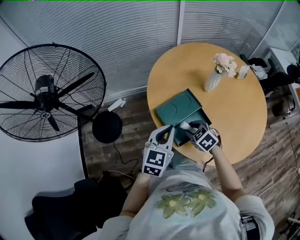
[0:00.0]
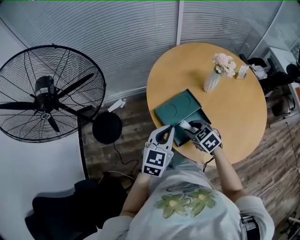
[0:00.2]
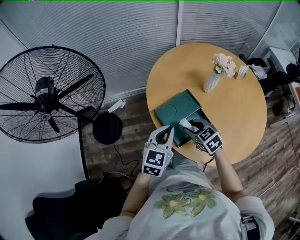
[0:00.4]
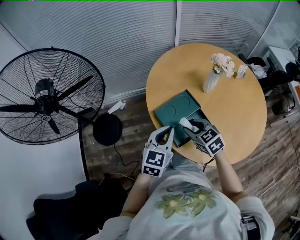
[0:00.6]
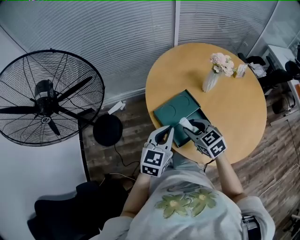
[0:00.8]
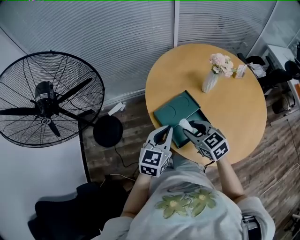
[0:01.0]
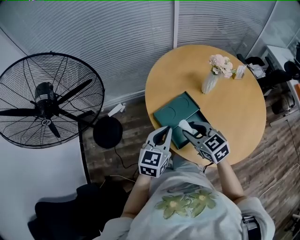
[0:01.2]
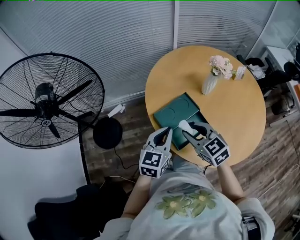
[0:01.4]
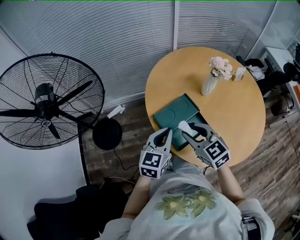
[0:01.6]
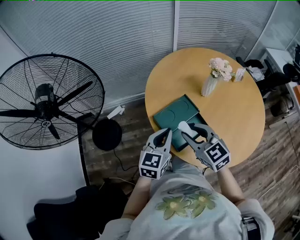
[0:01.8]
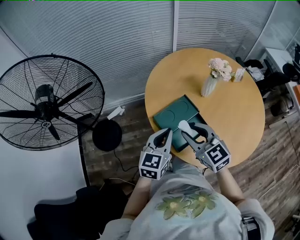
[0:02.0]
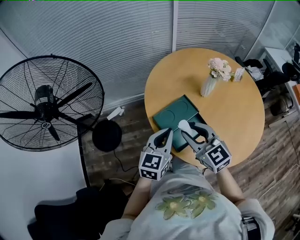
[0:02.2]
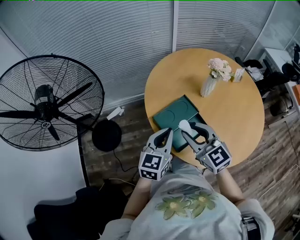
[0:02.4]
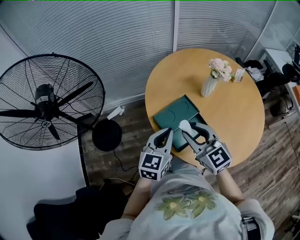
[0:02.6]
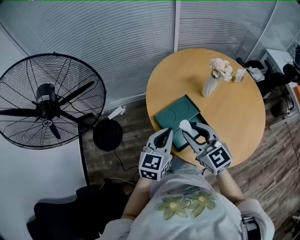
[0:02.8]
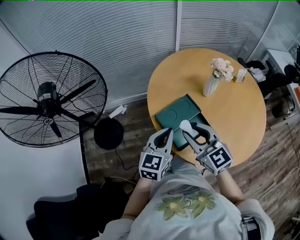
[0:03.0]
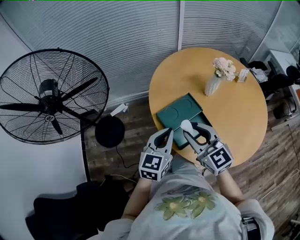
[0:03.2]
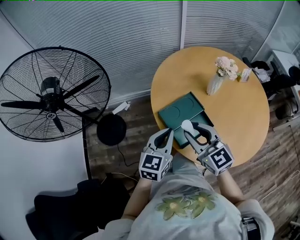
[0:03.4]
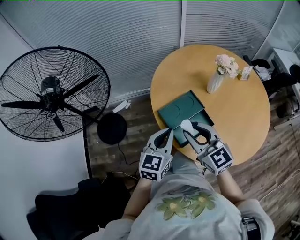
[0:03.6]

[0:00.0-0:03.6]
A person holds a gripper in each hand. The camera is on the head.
0:00.0 to 0:01.8: The right gripper shifts some 15 cm upward, and points its fingers approximately 30 degrees further upward.
0:01.8 to 0:03.6: There are only small adjustments of the grippers.

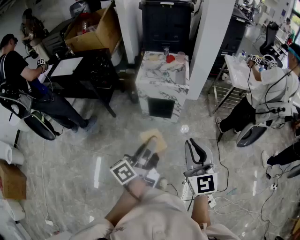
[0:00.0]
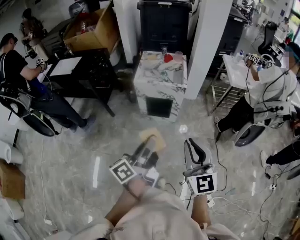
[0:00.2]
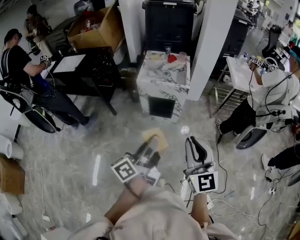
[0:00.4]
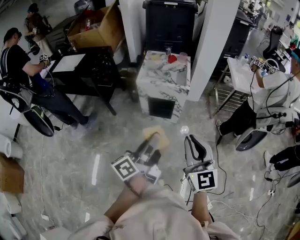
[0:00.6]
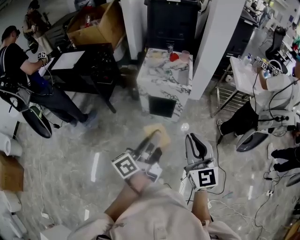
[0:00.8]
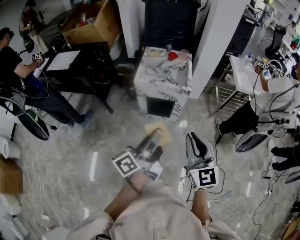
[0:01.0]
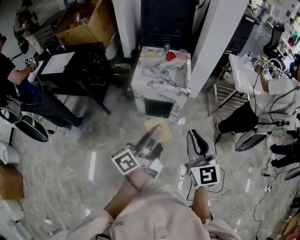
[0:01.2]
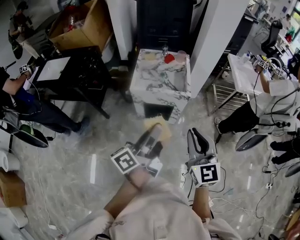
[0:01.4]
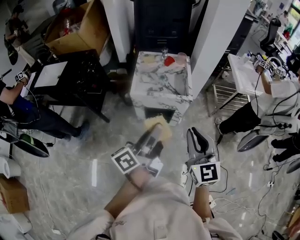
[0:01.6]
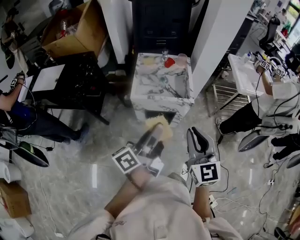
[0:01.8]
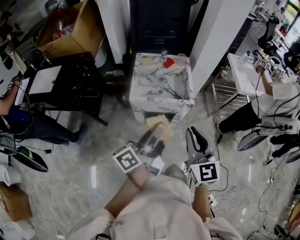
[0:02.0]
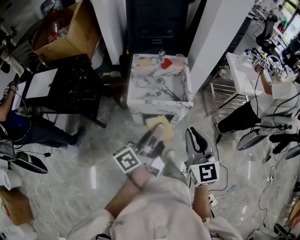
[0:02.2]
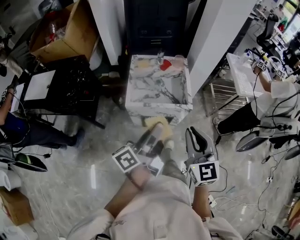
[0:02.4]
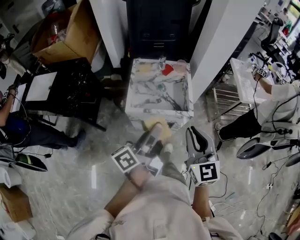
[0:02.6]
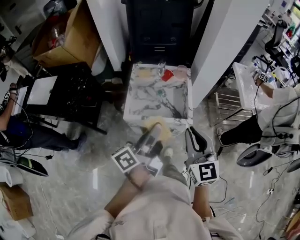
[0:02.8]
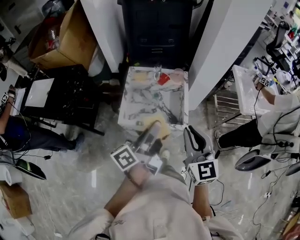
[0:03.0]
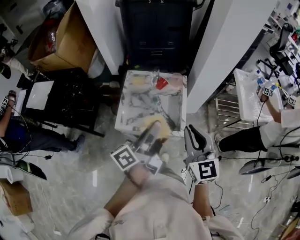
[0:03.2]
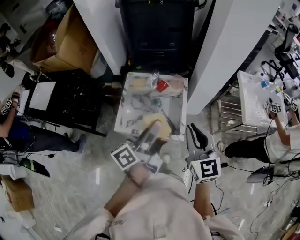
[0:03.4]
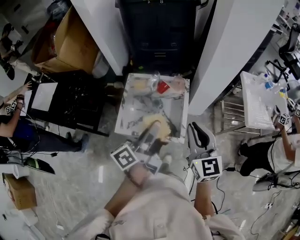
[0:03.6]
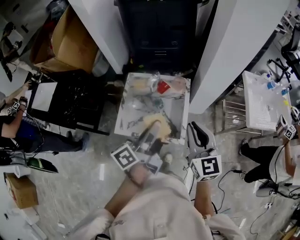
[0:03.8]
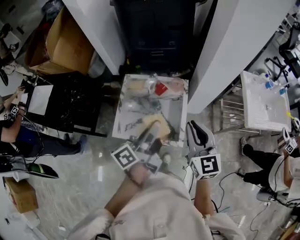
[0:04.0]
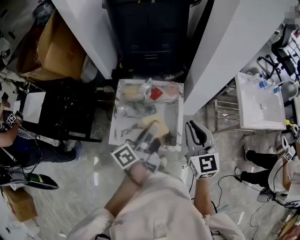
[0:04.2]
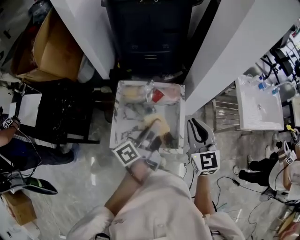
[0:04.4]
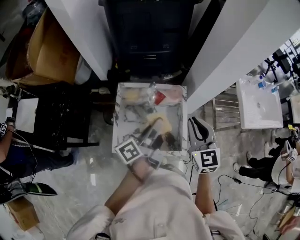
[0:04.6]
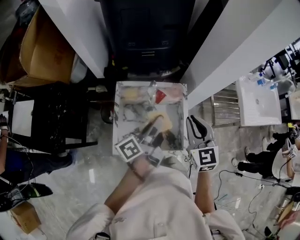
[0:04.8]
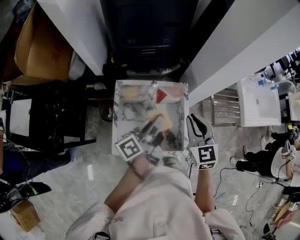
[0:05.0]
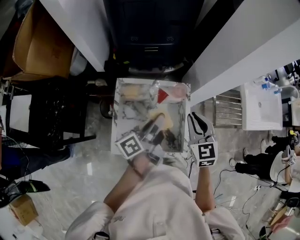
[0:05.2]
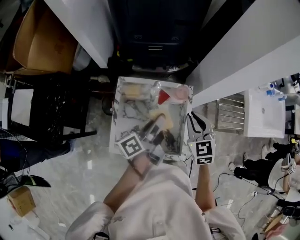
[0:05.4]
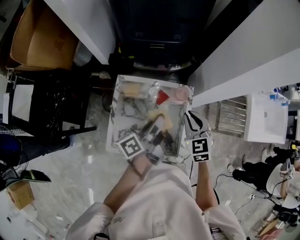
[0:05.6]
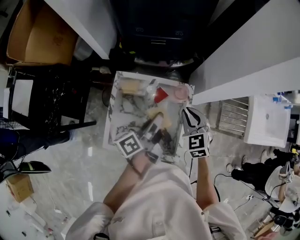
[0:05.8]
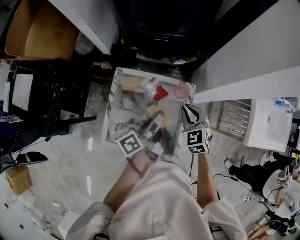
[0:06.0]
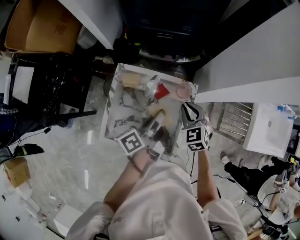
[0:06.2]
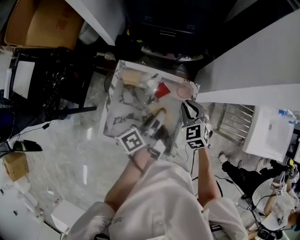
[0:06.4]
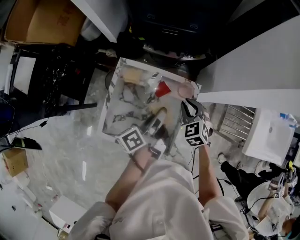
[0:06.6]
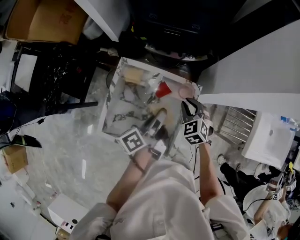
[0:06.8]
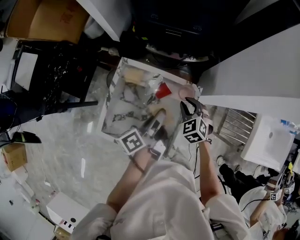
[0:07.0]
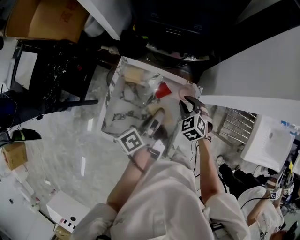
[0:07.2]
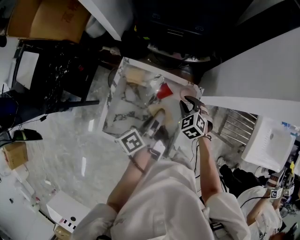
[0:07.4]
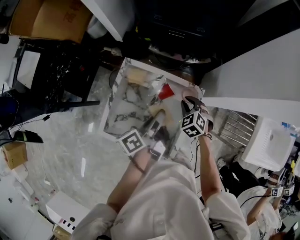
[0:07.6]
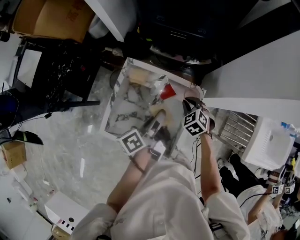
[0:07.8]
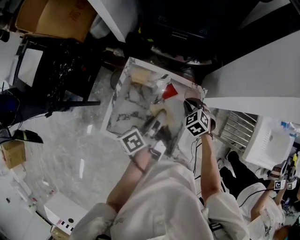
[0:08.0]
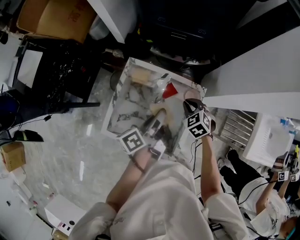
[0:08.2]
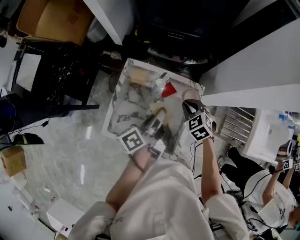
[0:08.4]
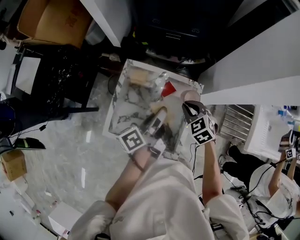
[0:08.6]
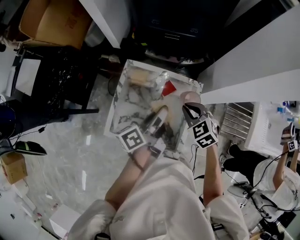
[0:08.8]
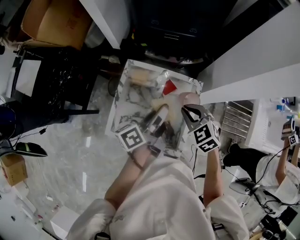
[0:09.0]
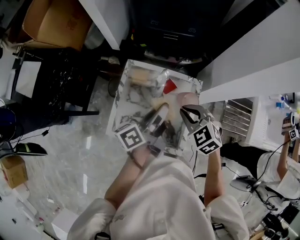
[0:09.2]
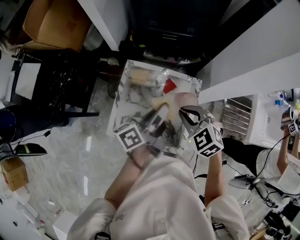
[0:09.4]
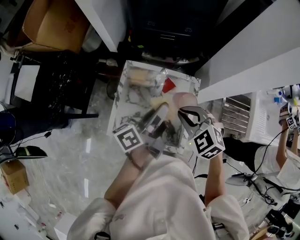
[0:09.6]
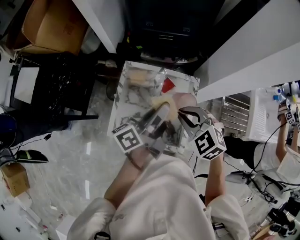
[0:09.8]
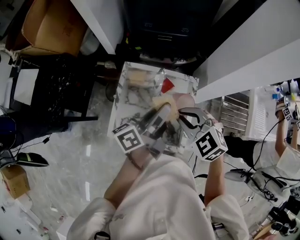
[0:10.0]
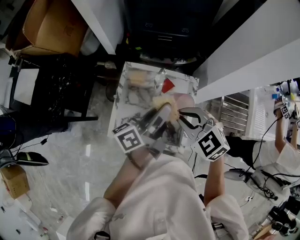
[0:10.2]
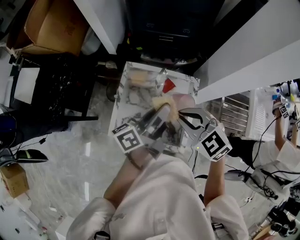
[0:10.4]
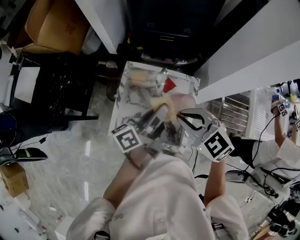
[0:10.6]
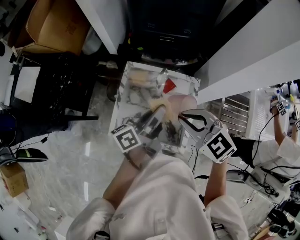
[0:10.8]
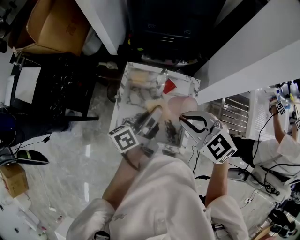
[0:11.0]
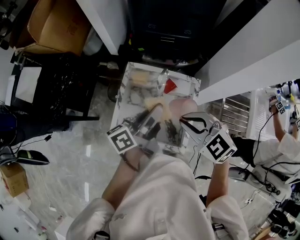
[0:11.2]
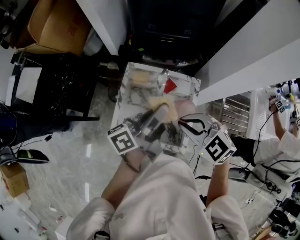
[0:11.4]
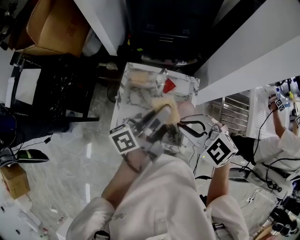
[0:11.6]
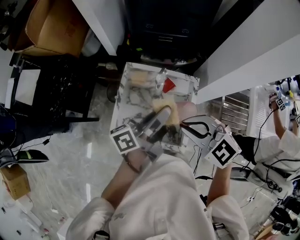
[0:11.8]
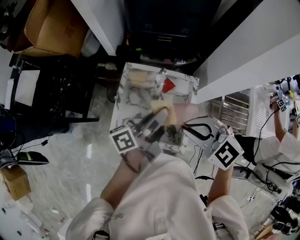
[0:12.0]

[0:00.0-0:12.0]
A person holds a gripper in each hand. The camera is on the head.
0:00.0 to 0:01.6: The two grippers go roughly 25 cm forward.
0:01.6 to 0:03.0: Both grippers travel together forward, roughly 25 cm.
0:03.0 to 0:04.4: The two grippers go about 20 cm forward.
0:04.4 to 0:06.0: The right gripper goes about 25 cm downward and forward, and rotates some 30 degrees. The left gripper is displaced forward and downward by approximately 20 cm.
0:06.0 to 0:07.6: The right gripper heads downward, covering some 10 cm, and turns by some 20 degrees.
0:07.6 to 0:09.0: The left gripper is displaced upward by some 10 cm; the right gripper heads upward and backward, covering some 15 cm.
0:09.0 to 0:10.4: The right gripper travels upward, to the left and backward by about 15 cm. Meanwhile the left gripper travels upward by about 5 cm.
0:10.4 to 0:12.0: The right gripper heads backward, covering about 5 cm.

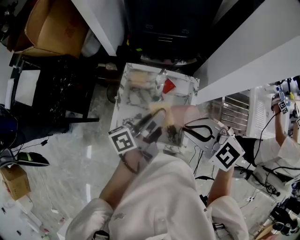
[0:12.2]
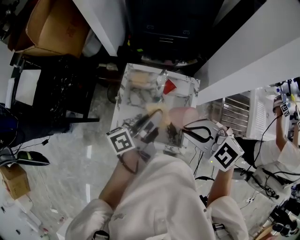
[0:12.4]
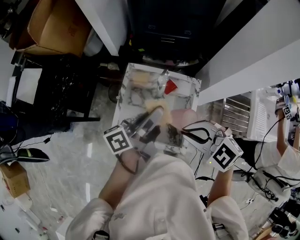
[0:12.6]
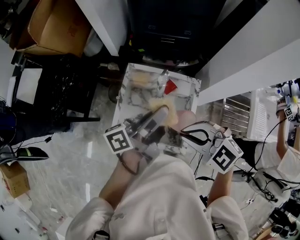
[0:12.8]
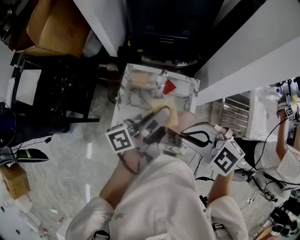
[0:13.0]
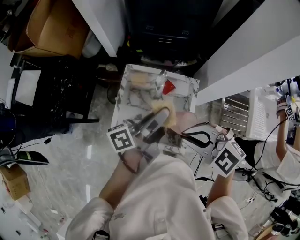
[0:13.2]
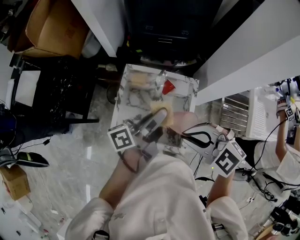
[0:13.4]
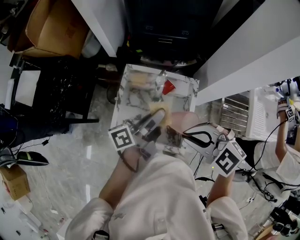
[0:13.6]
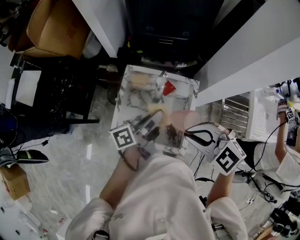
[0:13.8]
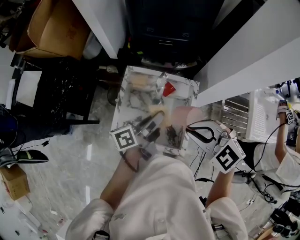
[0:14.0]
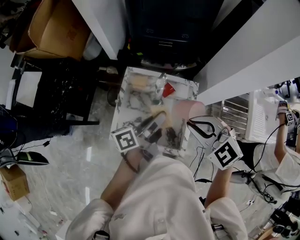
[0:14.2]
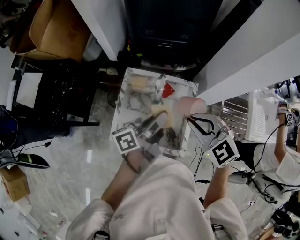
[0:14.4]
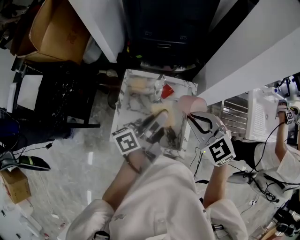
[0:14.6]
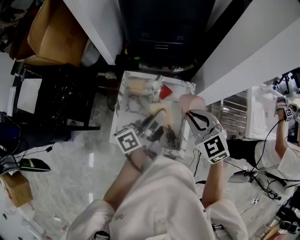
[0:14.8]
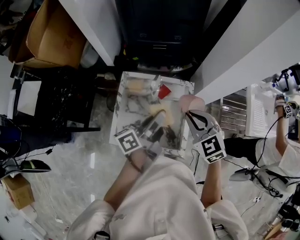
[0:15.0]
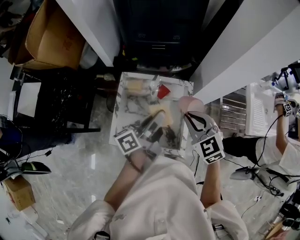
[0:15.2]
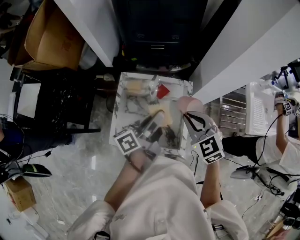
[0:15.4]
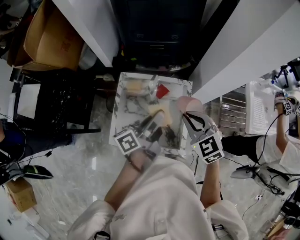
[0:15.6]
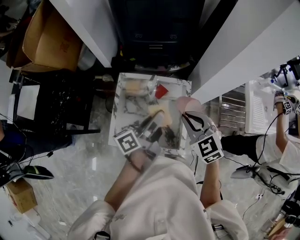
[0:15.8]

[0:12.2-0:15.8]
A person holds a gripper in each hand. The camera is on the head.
0:12.2 to 0:14.0: The grippers make only small movements.
0:14.0 to 0:15.8: The right gripper changes place by about 10 cm, and changes its angle by some 30 degrees.

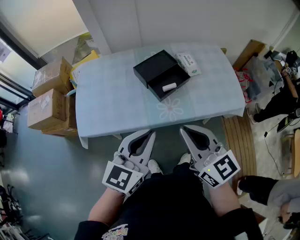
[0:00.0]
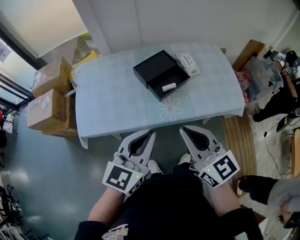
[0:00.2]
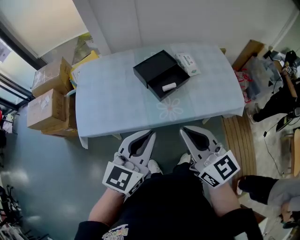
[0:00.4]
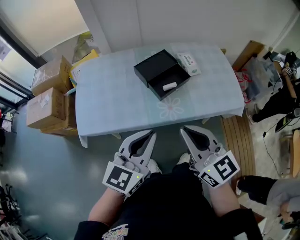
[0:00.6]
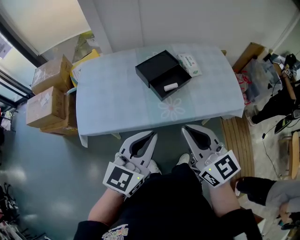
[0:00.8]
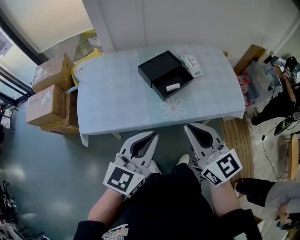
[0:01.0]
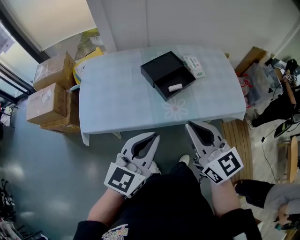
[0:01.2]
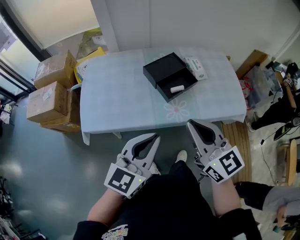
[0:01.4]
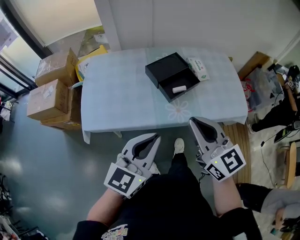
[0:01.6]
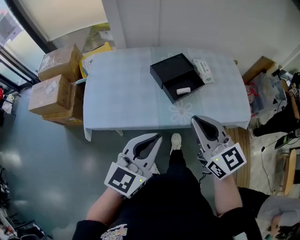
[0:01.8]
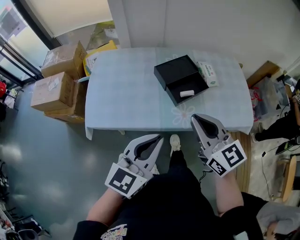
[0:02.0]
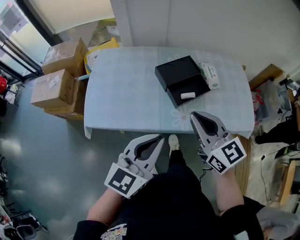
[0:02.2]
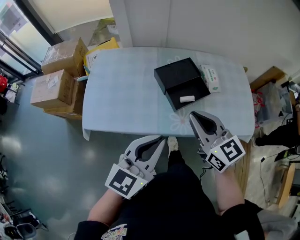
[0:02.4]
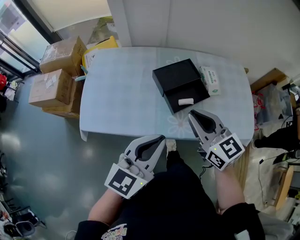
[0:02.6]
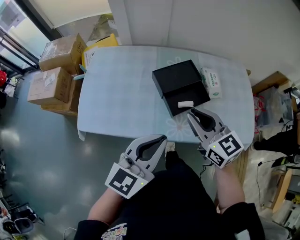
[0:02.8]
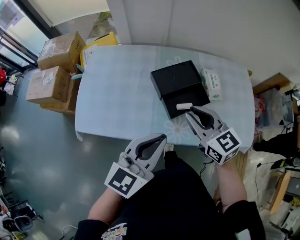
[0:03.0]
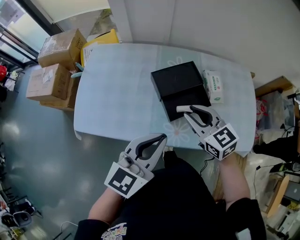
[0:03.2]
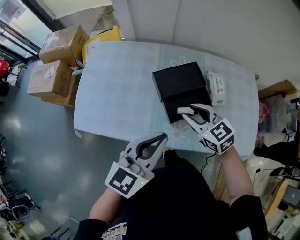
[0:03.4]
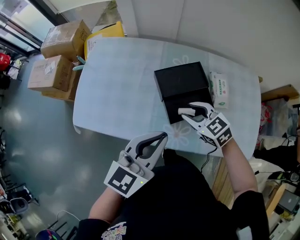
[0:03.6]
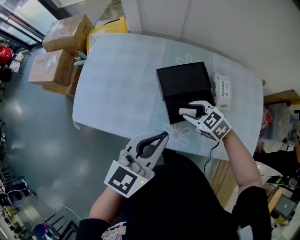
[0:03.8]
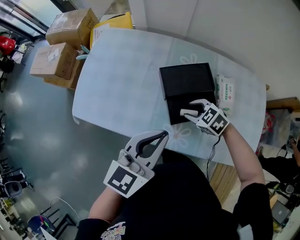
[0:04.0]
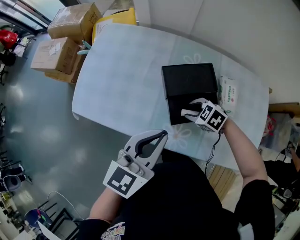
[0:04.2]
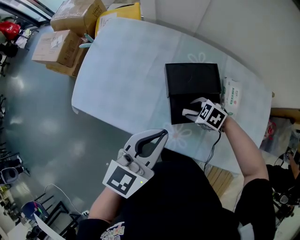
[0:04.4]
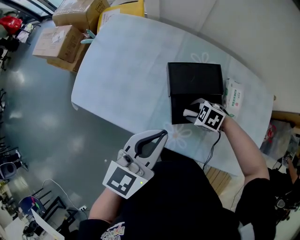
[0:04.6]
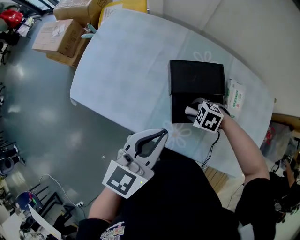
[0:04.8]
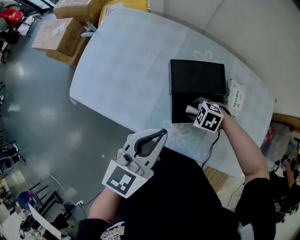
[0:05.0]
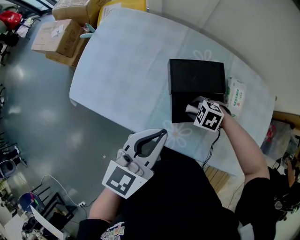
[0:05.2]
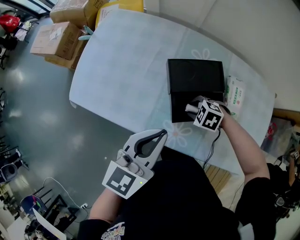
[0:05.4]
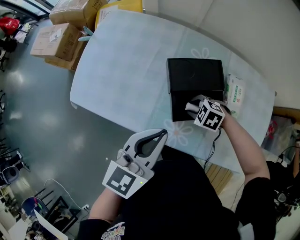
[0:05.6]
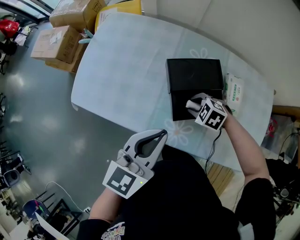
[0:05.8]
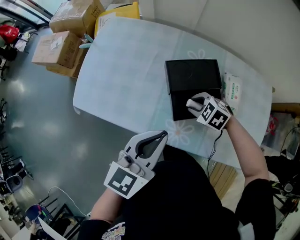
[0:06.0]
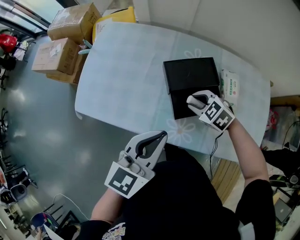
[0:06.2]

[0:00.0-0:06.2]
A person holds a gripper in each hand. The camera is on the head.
0:00.0 to 0:01.6: The grippers stay close to where they were, moving slightly.
0:01.6 to 0:03.2: The left gripper moves forward and to the right, about 15 cm; the right gripper travels forward and downward by roughly 25 cm, swivels some 30 degrees, and opens up.
0:03.2 to 0:04.6: The right gripper moves downward, approximately 20 cm, and points its fingers about 40 degrees further downward. Meanwhile the left gripper changes place by approximately 10 cm.
0:04.6 to 0:06.2: The right gripper is displaced upward by about 5 cm, and turns by about 20 degrees.
